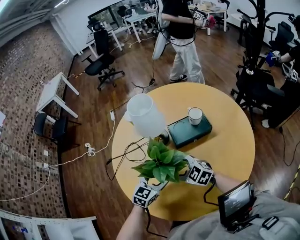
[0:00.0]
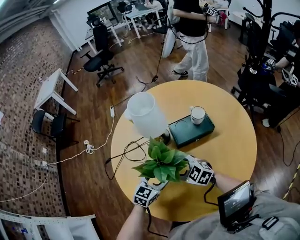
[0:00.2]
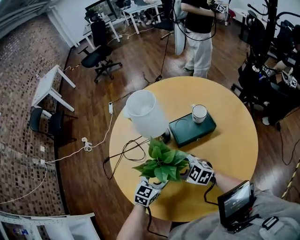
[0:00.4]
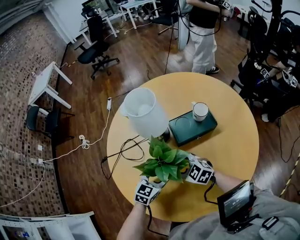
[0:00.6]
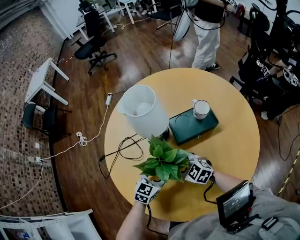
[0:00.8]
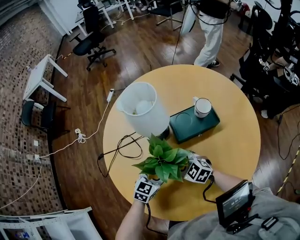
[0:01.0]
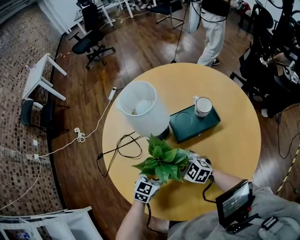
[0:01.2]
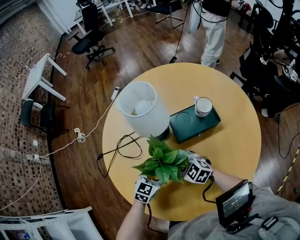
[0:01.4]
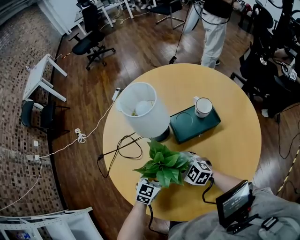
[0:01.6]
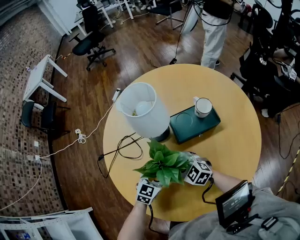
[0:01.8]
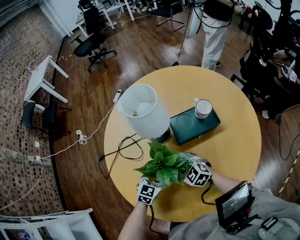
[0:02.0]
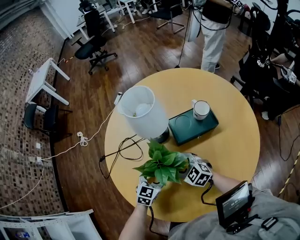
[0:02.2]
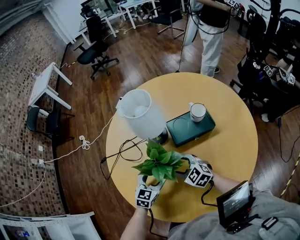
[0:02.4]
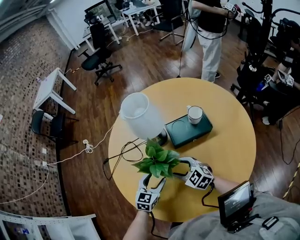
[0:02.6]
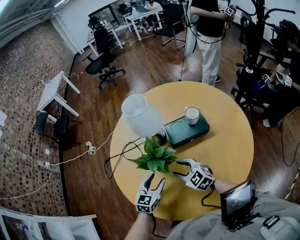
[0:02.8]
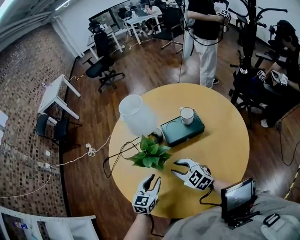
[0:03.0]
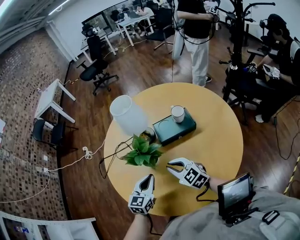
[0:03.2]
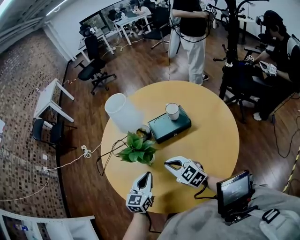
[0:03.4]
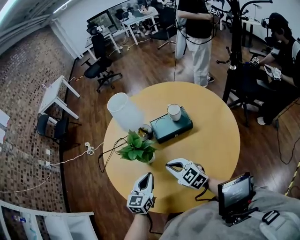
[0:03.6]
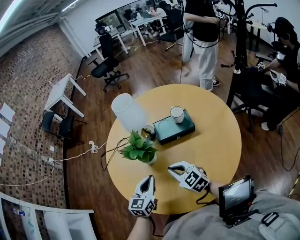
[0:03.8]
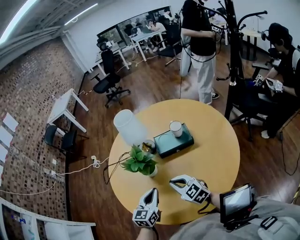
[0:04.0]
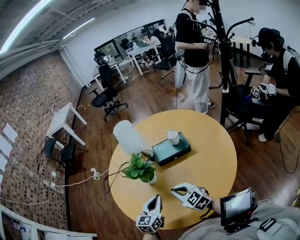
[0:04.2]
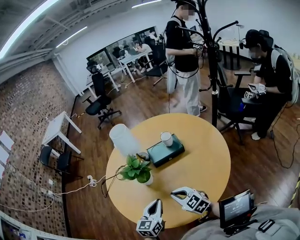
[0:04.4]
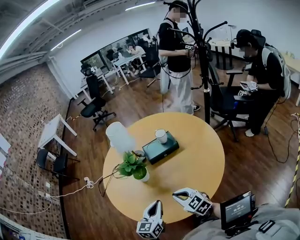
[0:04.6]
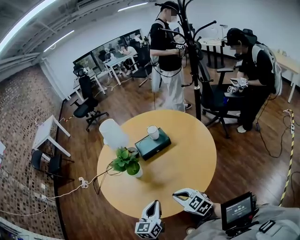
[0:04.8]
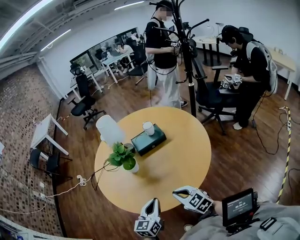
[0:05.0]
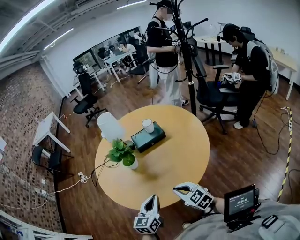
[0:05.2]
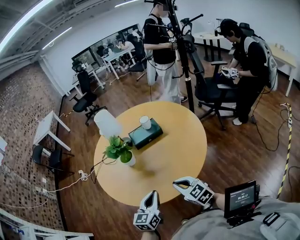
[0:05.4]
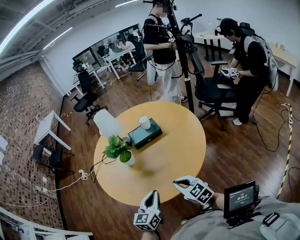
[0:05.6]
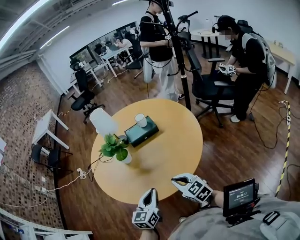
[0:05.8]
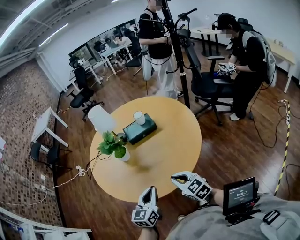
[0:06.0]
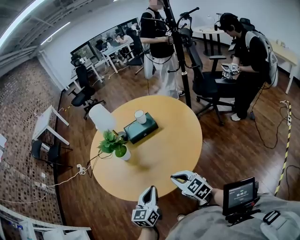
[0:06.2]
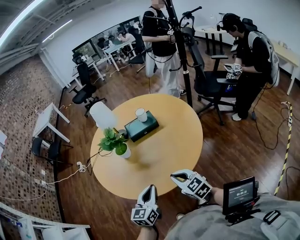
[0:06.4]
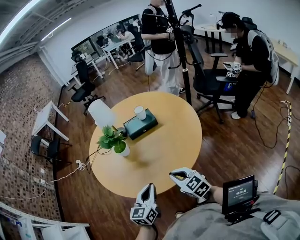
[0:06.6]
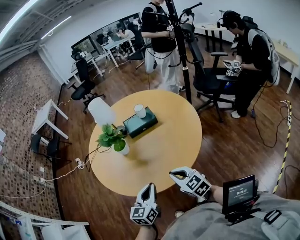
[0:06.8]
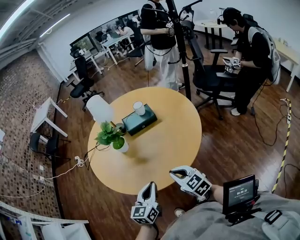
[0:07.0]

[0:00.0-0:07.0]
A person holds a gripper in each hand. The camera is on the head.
0:00.0 to 0:01.4: The left gripper is displaced downward by approximately 10 cm; the right gripper heads downward and forward, covering some 10 cm.
0:01.4 to 0:02.8: The right gripper moves upward, backward and to the right, roughly 10 cm. The left gripper heads backward and upward, covering some 10 cm.
0:02.8 to 0:04.2: Both grippers move backward, upward and to the right, roughly 15 cm. The right gripper closes, while the left gripper closes up.
0:04.2 to 0:05.6: The left gripper moves backward, approximately 15 cm. Meanwhile the right gripper travels backward and to the right by roughly 20 cm.
0:05.6 to 0:07.0: The grippers stay close to where they were, moving slightly.

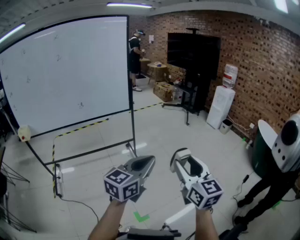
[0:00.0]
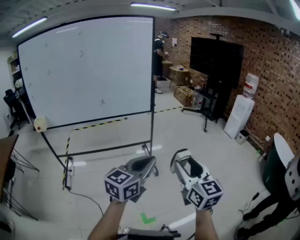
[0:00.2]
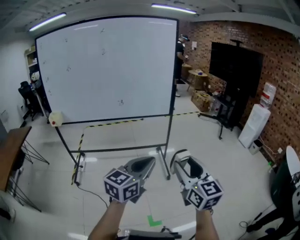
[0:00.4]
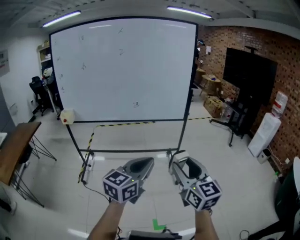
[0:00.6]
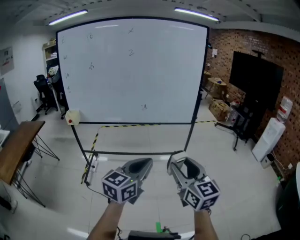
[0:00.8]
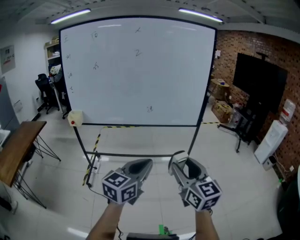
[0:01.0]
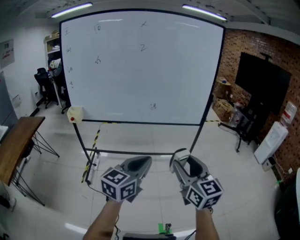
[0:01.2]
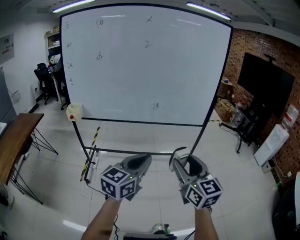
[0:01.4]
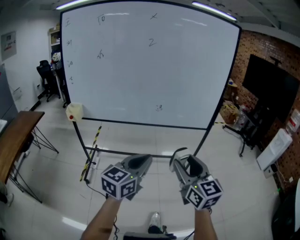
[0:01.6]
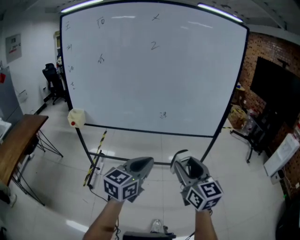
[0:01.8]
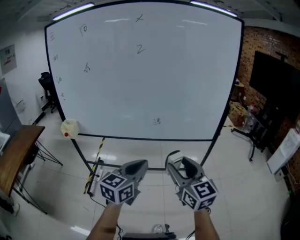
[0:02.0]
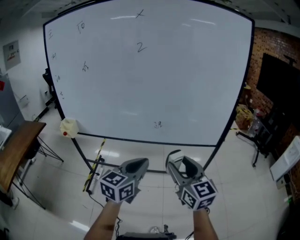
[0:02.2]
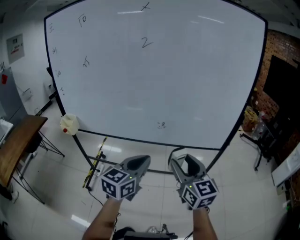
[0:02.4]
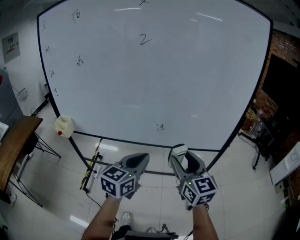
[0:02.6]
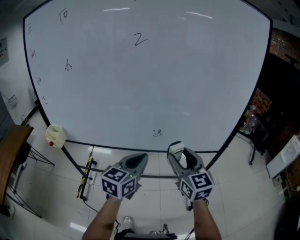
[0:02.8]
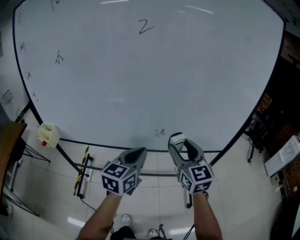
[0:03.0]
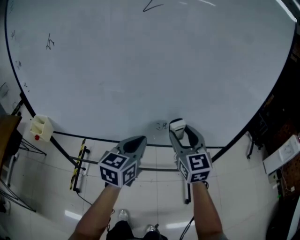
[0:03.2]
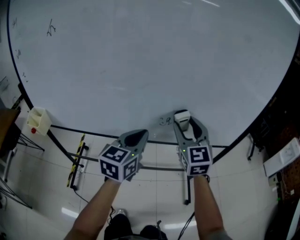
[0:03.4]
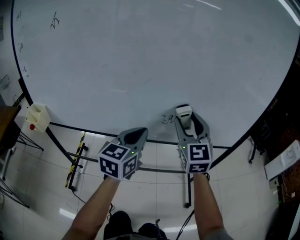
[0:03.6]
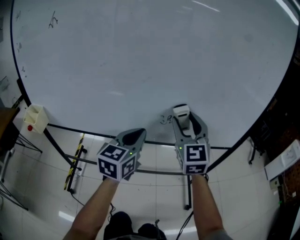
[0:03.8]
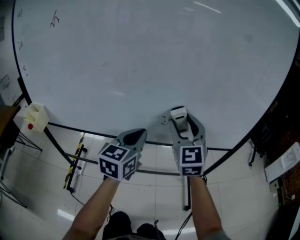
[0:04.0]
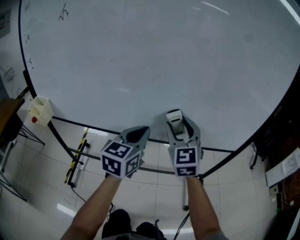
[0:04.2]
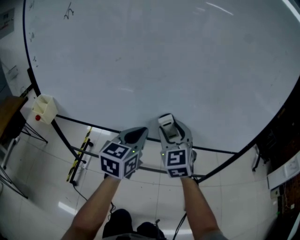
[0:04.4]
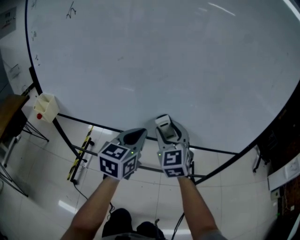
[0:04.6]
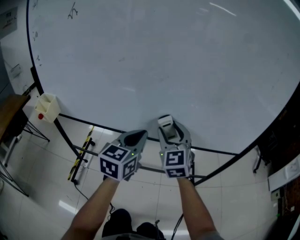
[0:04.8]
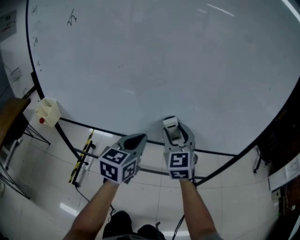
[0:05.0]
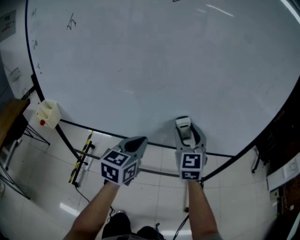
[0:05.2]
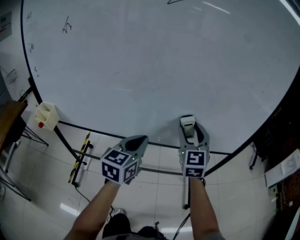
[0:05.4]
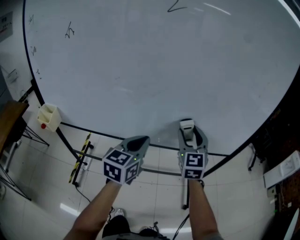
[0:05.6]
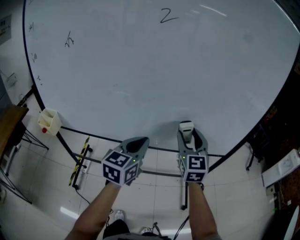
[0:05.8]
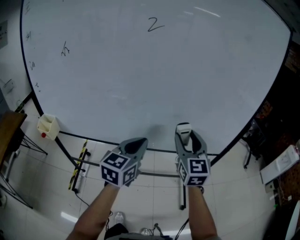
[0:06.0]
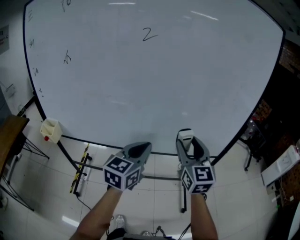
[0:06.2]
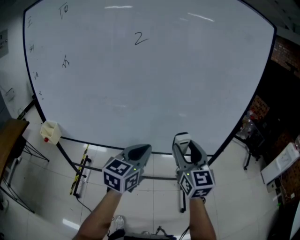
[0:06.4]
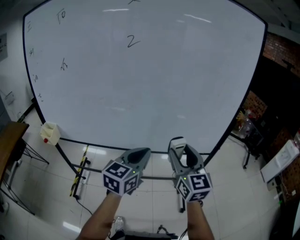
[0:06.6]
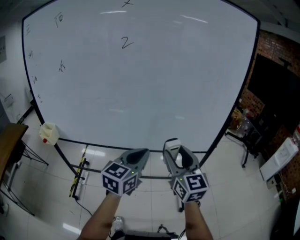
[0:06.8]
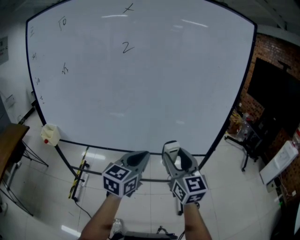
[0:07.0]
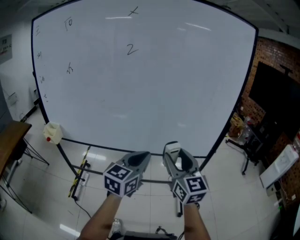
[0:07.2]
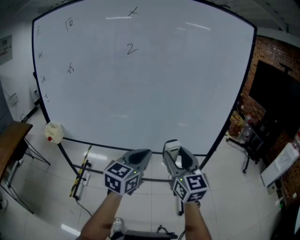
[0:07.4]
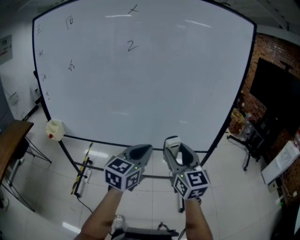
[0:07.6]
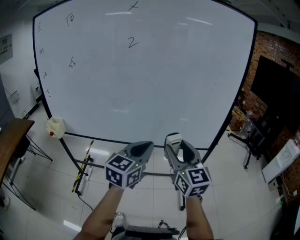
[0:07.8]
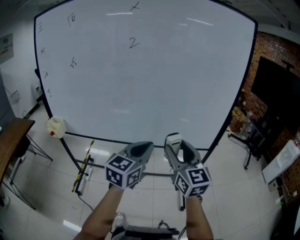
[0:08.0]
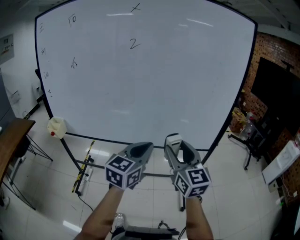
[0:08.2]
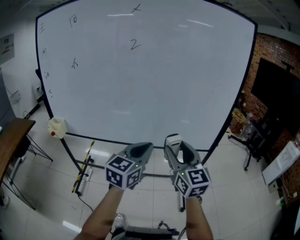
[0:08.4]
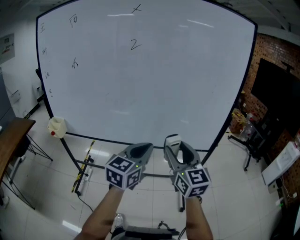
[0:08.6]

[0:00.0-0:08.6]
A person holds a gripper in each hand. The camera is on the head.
0:00.0 to 0:01.4: The right gripper travels to the left and forward by about 40 cm, and swivels some 20 degrees; the left gripper is displaced to the left by approximately 35 cm, and changes its angle by about 20 degrees.
0:01.4 to 0:02.8: The grippers both shift forward by some 35 cm.
0:02.8 to 0:04.4: The left gripper goes some 15 cm forward, downward and to the left. The right gripper goes roughly 20 cm forward, to the left and downward, and turns by approximately 20 degrees.
0:04.4 to 0:05.8: The left gripper shifts approximately 5 cm upward. Meanwhile the right gripper travels to the right and upward by about 15 cm.
0:05.8 to 0:07.2: The left gripper shifts about 15 cm to the right, backward and upward; the right gripper is displaced backward and to the right by roughly 15 cm.
0:07.2 to 0:08.6: The grippers make only small movements.

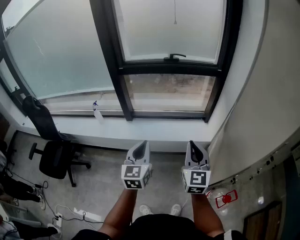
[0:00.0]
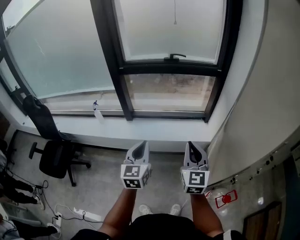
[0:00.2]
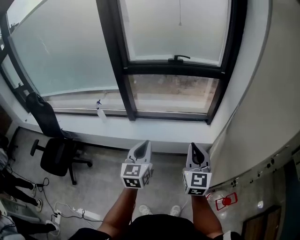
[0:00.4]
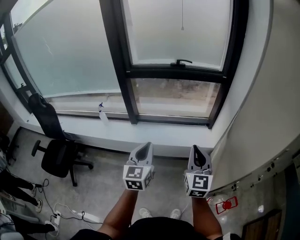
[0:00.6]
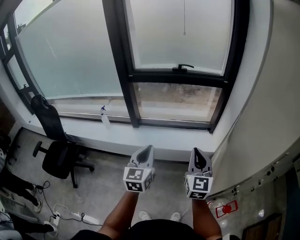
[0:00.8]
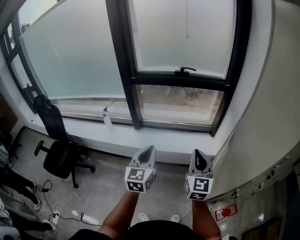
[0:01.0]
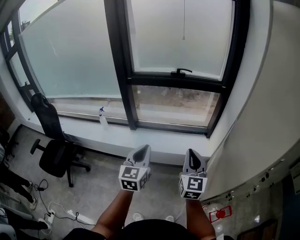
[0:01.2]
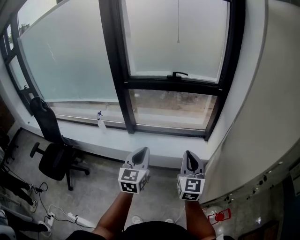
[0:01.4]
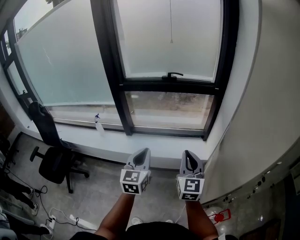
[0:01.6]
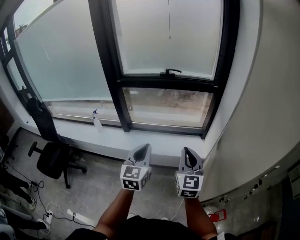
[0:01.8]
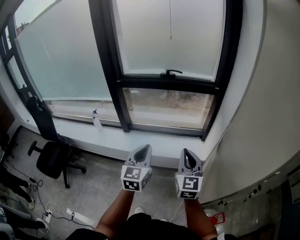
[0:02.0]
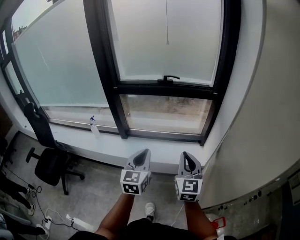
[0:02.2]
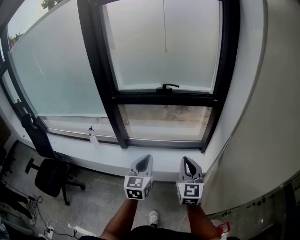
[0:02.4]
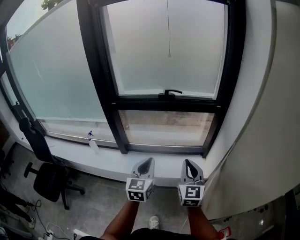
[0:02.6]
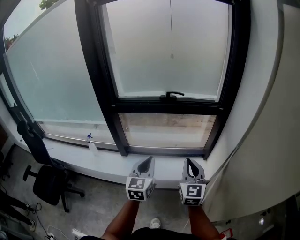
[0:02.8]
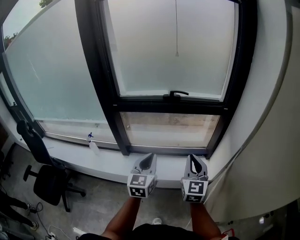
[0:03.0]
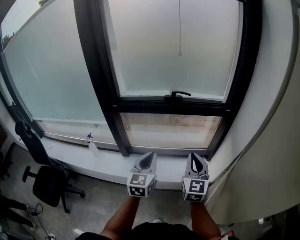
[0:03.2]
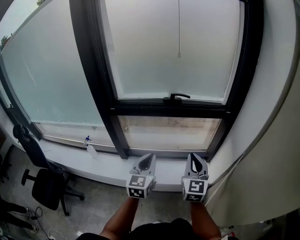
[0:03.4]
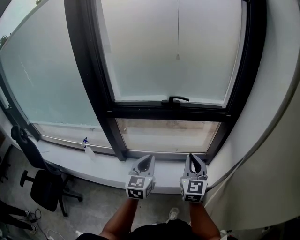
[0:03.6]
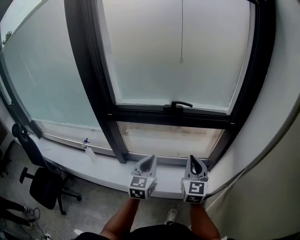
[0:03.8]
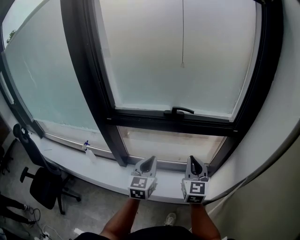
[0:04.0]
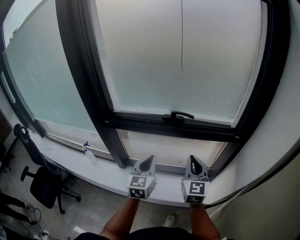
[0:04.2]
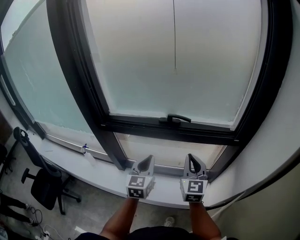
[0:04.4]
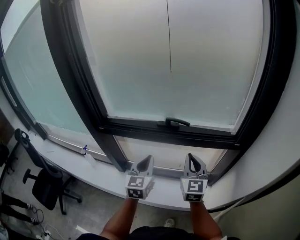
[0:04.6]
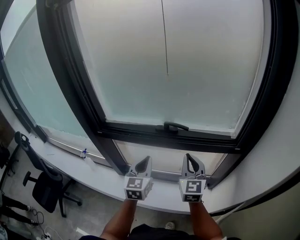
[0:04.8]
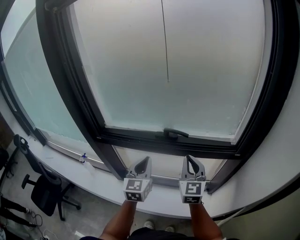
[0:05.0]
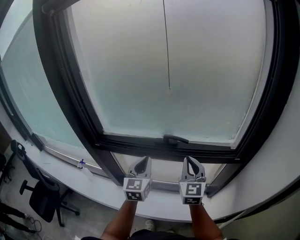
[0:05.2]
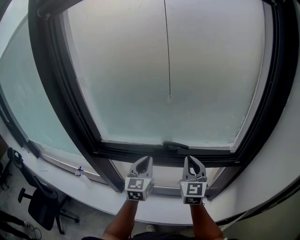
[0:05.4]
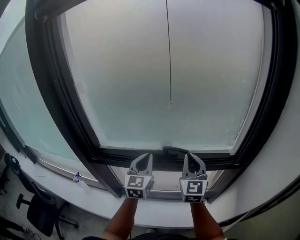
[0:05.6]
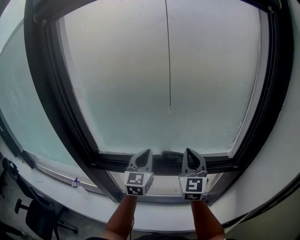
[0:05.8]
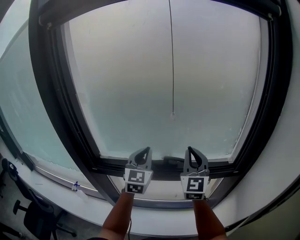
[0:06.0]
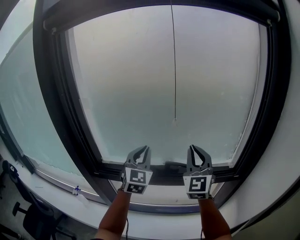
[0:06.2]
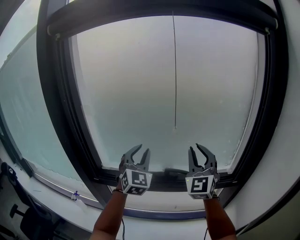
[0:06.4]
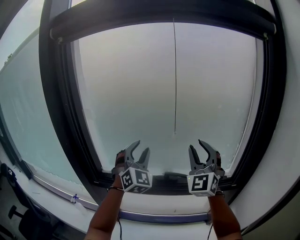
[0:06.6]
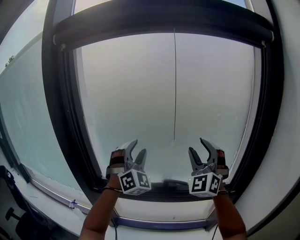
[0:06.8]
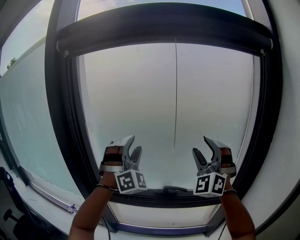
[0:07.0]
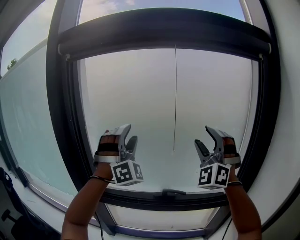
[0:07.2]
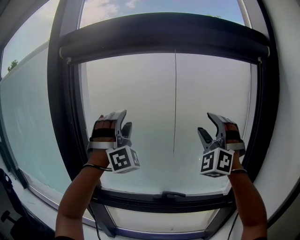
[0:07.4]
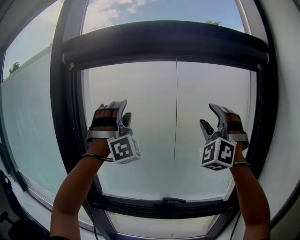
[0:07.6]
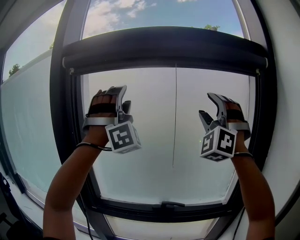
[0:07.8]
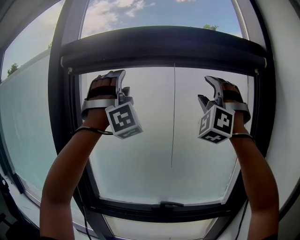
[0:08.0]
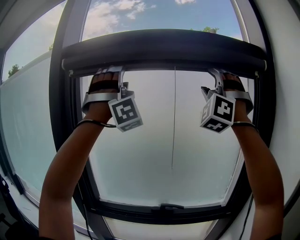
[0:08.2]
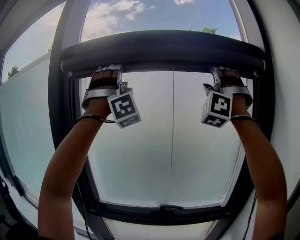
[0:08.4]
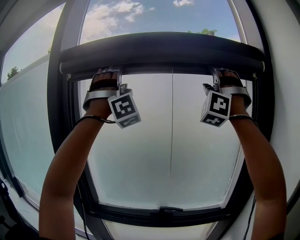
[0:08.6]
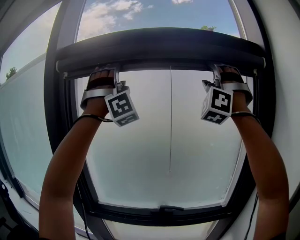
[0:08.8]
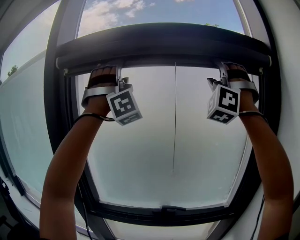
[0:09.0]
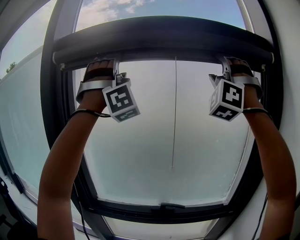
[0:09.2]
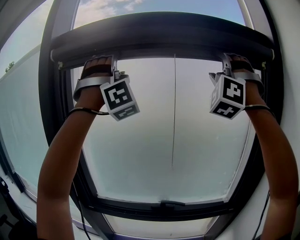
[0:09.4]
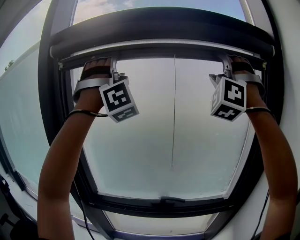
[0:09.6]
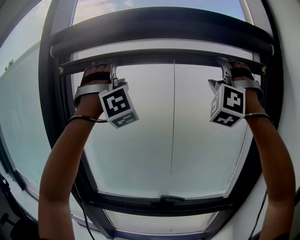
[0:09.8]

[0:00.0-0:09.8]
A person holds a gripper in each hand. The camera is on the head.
0:00.0 to 0:01.4: The grippers move only a little.
0:01.4 to 0:02.8: The two grippers go roughly 20 cm forward.
0:02.8 to 0:04.2: Both grippers travel together forward, approximately 25 cm.
0:04.2 to 0:05.6: Both grippers travel together forward and upward, some 20 cm.
0:05.6 to 0:07.0: Both grippers move upward, roughly 25 cm. The right gripper twists approximately 60 degrees counterclockwise, seen from behind, and opens, while the left gripper twists some 70 degrees clockwise, seen from behind, and opens its fingers.
0:07.0 to 0:08.4: Both grippers travel together upward, some 35 cm. The left gripper changes its angle by some 30 degrees, while the right gripper rotates approximately 40 degrees.
0:08.4 to 0:09.8: The left gripper goes some 5 cm downward.
